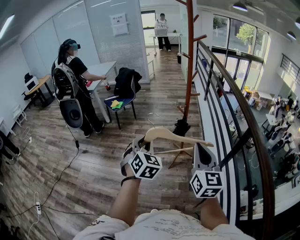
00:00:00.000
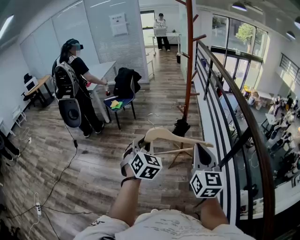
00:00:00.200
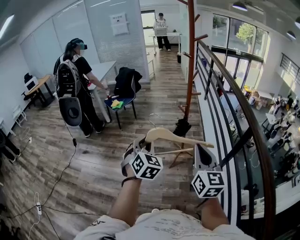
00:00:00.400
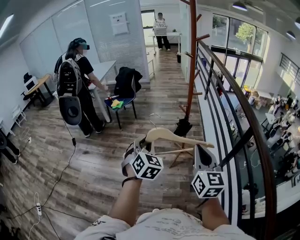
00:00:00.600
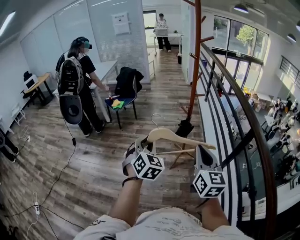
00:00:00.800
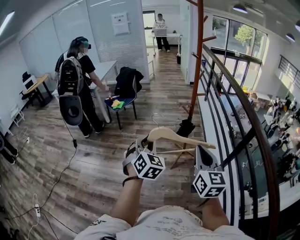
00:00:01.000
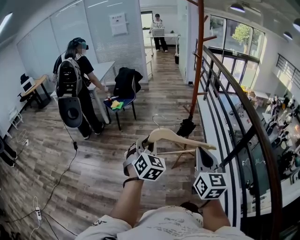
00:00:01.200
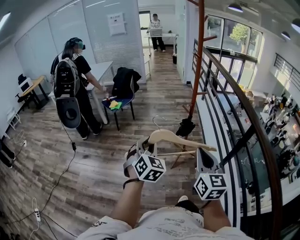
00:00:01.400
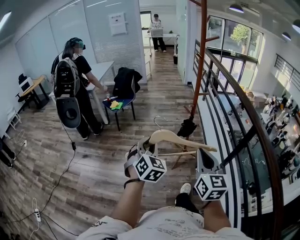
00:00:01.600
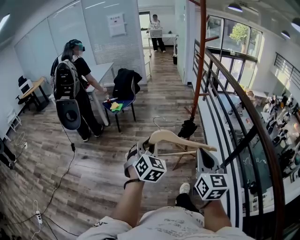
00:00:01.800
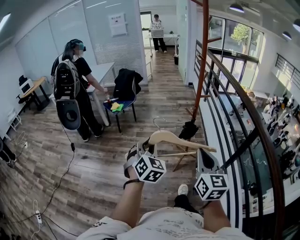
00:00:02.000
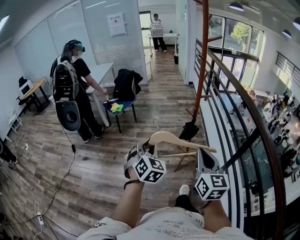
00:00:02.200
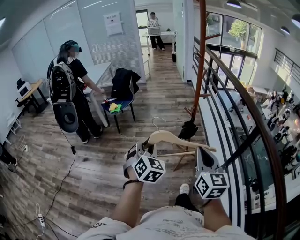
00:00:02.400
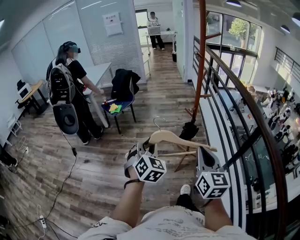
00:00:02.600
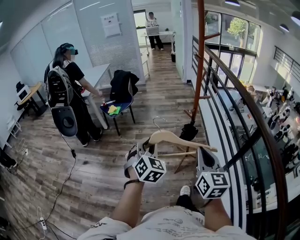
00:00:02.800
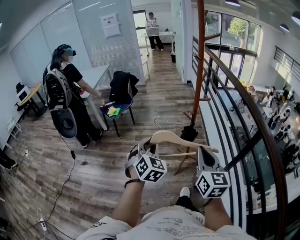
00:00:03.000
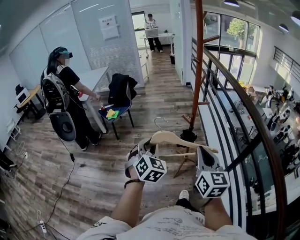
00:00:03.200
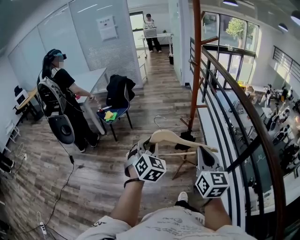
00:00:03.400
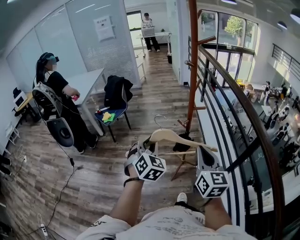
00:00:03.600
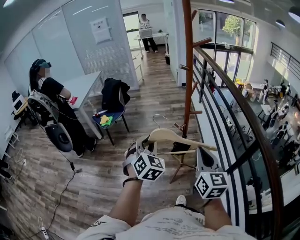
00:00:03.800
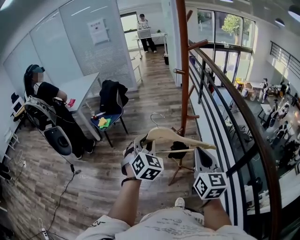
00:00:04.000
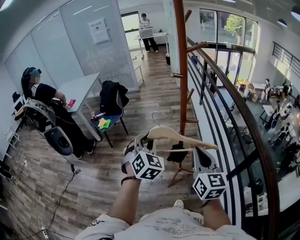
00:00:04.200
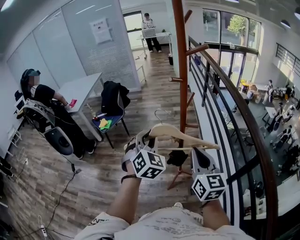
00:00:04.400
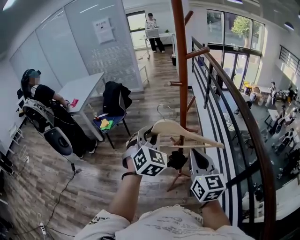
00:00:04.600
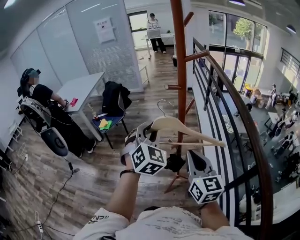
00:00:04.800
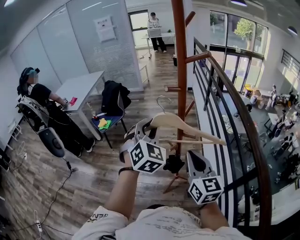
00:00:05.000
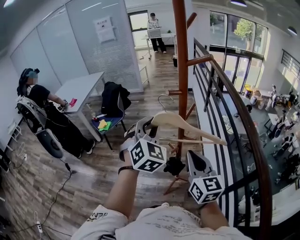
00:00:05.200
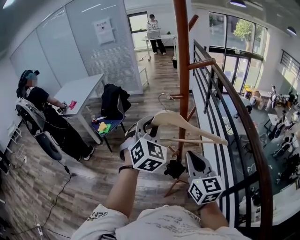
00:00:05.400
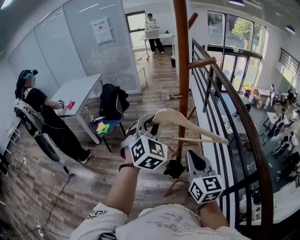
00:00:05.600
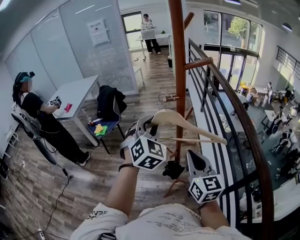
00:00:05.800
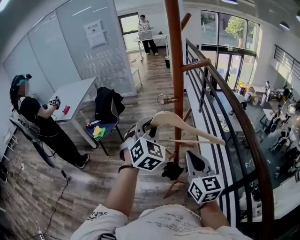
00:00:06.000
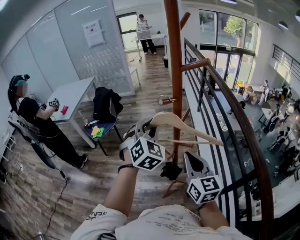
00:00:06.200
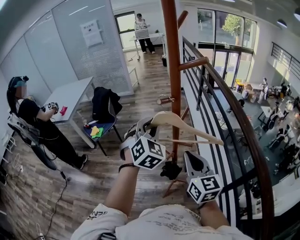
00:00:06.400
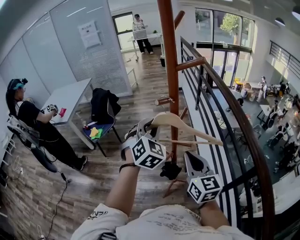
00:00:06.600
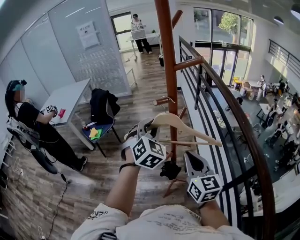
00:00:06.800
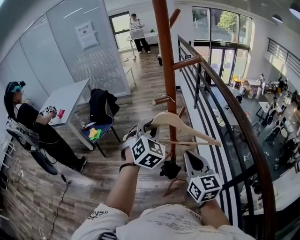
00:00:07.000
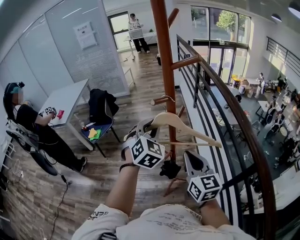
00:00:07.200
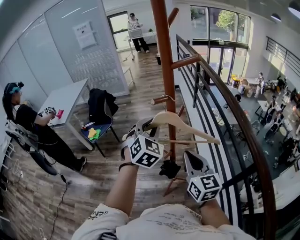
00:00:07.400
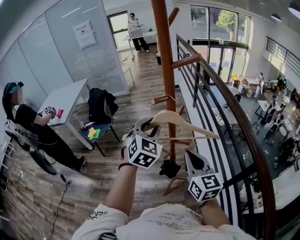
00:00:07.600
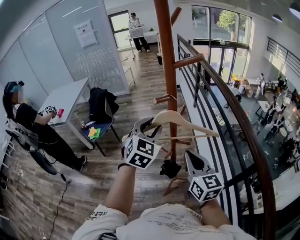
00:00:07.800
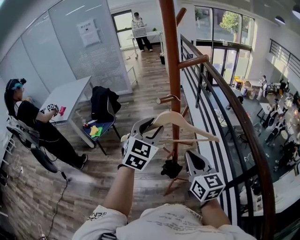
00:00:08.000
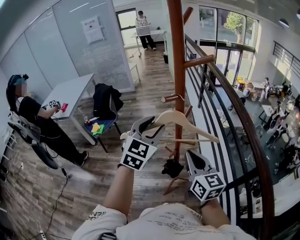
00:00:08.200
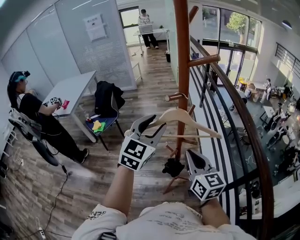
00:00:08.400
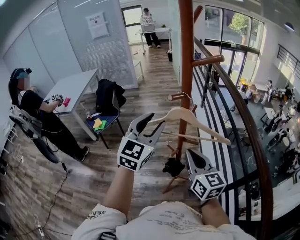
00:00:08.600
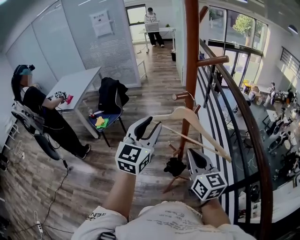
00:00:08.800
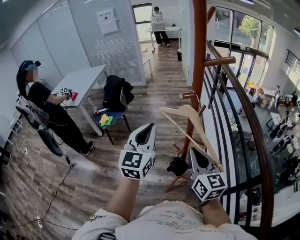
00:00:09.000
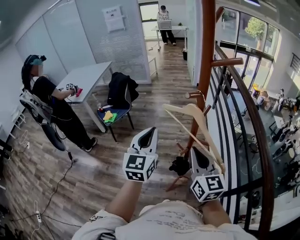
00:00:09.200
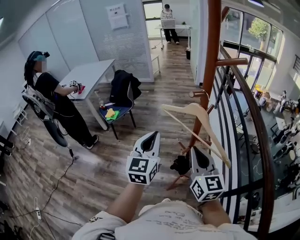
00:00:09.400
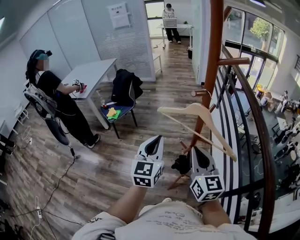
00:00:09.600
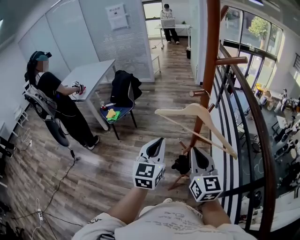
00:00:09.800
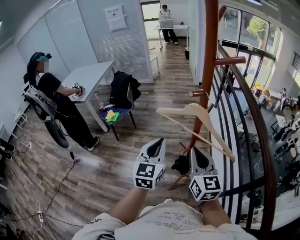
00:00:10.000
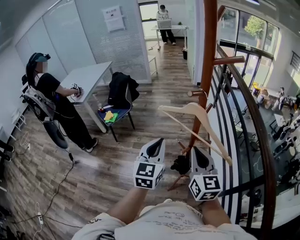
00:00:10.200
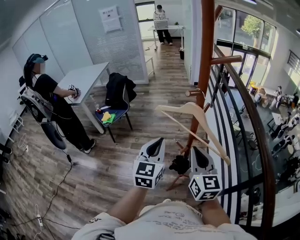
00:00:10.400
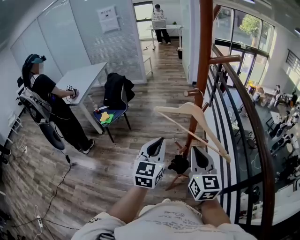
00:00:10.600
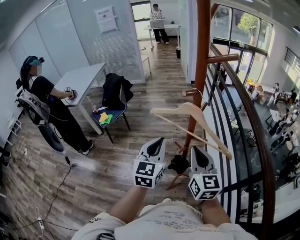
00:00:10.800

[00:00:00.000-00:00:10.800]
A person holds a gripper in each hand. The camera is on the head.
00:00:00.000 to 00:00:01.600: Both grippers move to the left, about 10 cm.
00:00:01.600 to 00:00:03.000: Both grippers travel together forward, about 10 cm.
00:00:03.000 to 00:00:04.600: The left gripper is displaced forward, to the right and upward by approximately 30 cm; the right gripper goes roughly 25 cm forward and to the right.
00:00:04.600 to 00:00:06.200: The grippers both shift forward by roughly 10 cm.
00:00:06.200 to 00:00:07.800: The grippers move only a little.
00:00:07.800 to 00:00:09.200: The left gripper goes approximately 10 cm to the left and backward, rotates approximately 40 degrees, and closes its fingers.
00:00:09.200 to 00:00:10.800: The left gripper moves downward, about 5 cm.

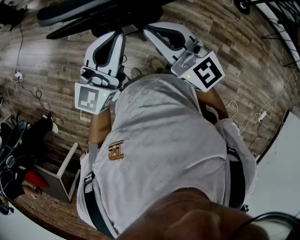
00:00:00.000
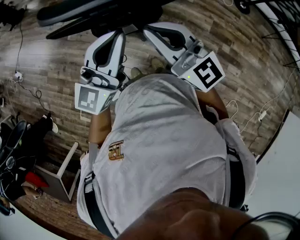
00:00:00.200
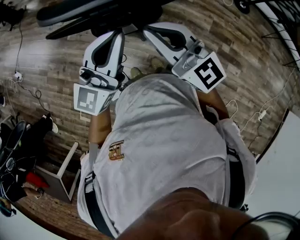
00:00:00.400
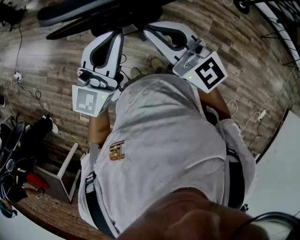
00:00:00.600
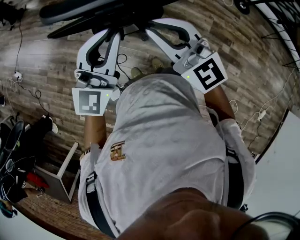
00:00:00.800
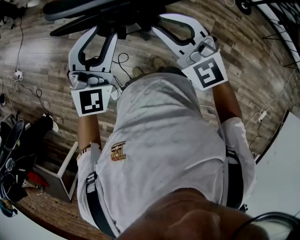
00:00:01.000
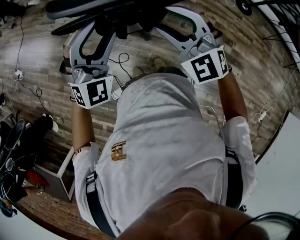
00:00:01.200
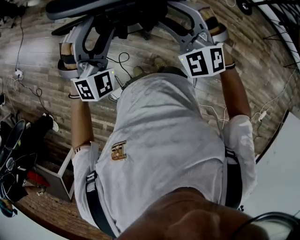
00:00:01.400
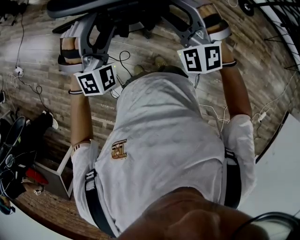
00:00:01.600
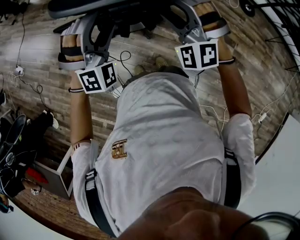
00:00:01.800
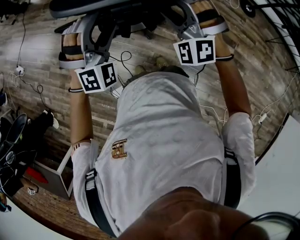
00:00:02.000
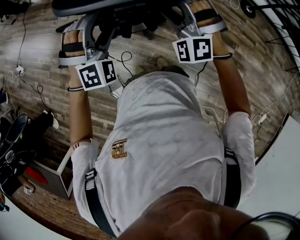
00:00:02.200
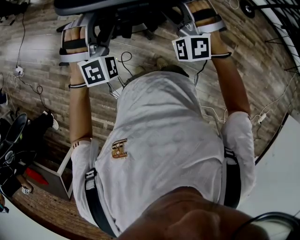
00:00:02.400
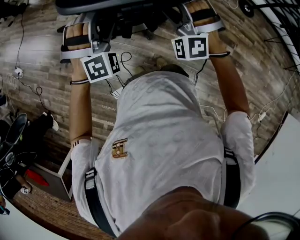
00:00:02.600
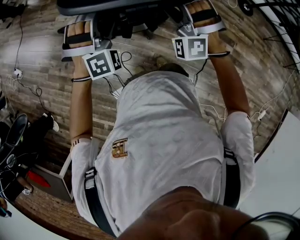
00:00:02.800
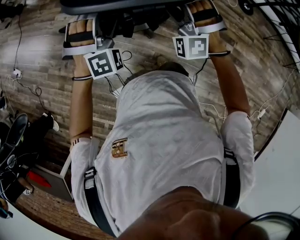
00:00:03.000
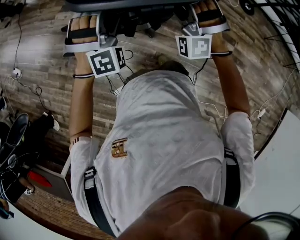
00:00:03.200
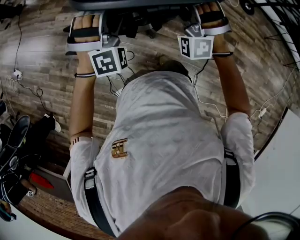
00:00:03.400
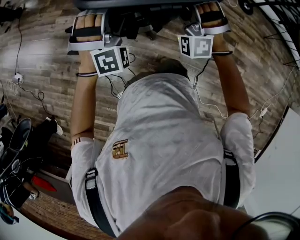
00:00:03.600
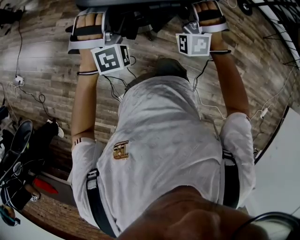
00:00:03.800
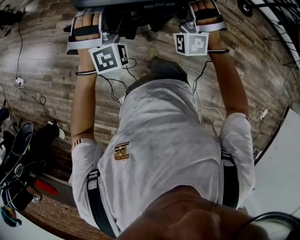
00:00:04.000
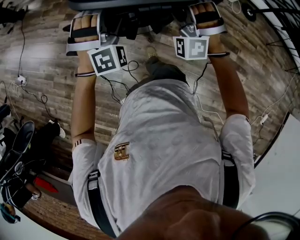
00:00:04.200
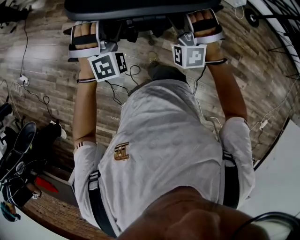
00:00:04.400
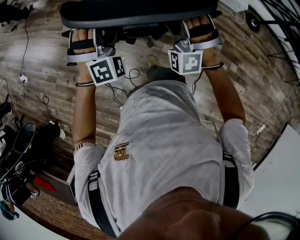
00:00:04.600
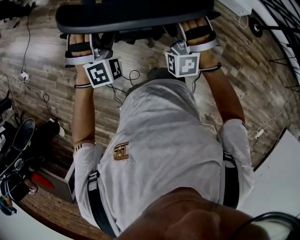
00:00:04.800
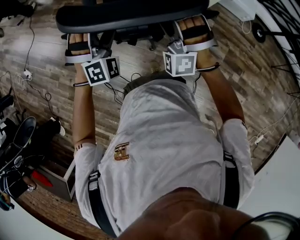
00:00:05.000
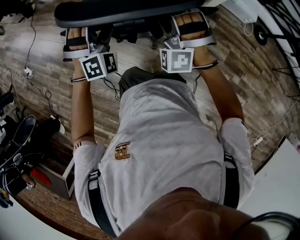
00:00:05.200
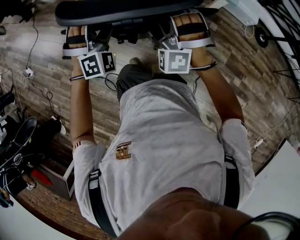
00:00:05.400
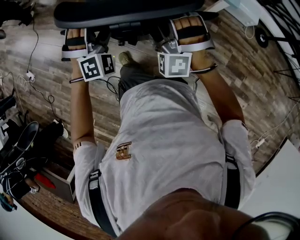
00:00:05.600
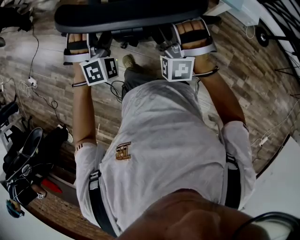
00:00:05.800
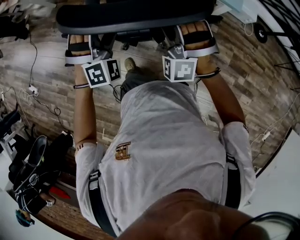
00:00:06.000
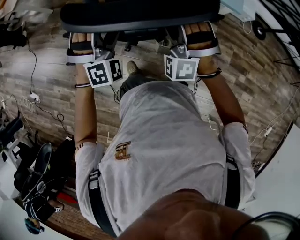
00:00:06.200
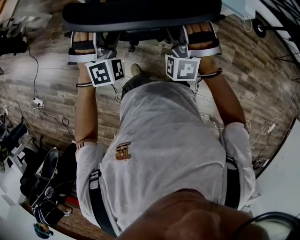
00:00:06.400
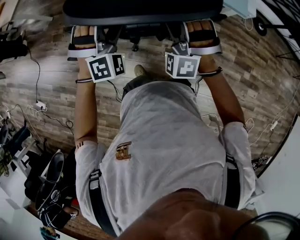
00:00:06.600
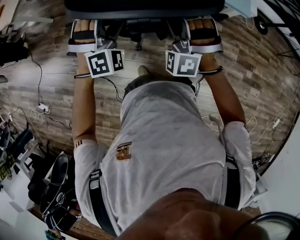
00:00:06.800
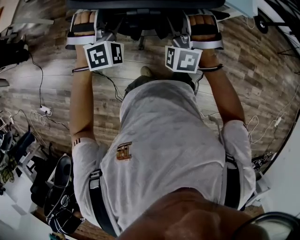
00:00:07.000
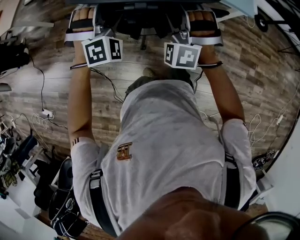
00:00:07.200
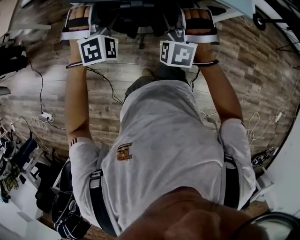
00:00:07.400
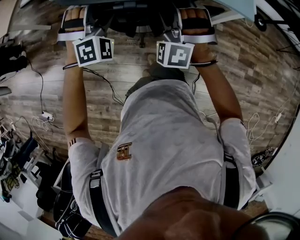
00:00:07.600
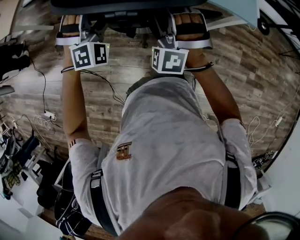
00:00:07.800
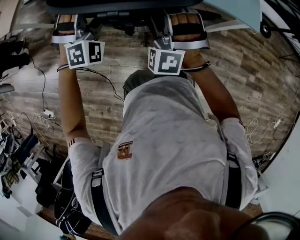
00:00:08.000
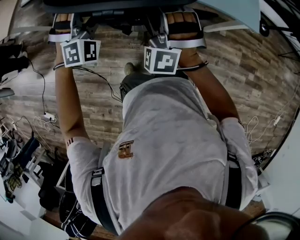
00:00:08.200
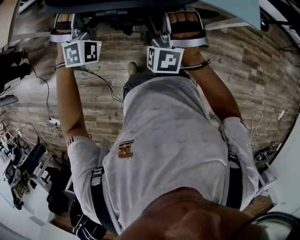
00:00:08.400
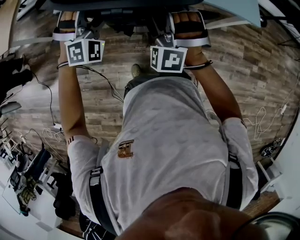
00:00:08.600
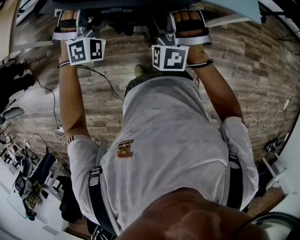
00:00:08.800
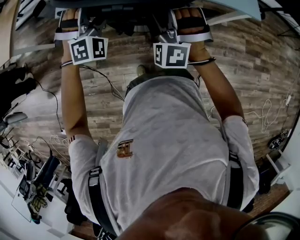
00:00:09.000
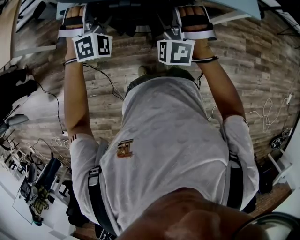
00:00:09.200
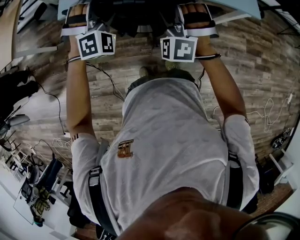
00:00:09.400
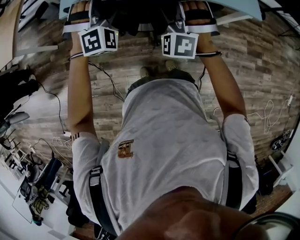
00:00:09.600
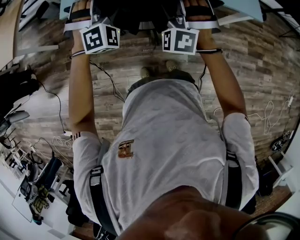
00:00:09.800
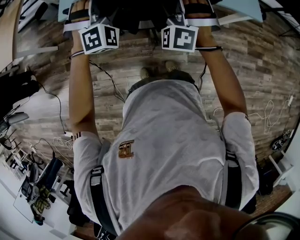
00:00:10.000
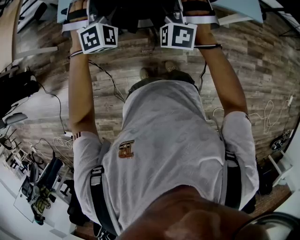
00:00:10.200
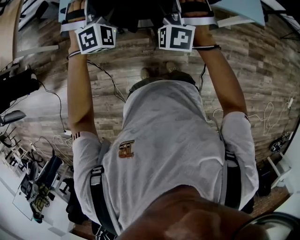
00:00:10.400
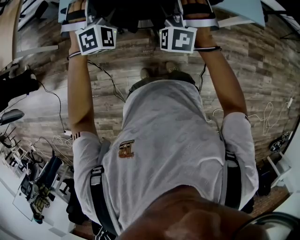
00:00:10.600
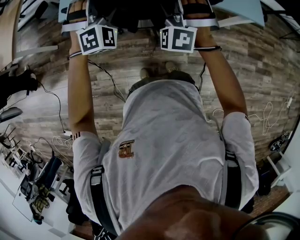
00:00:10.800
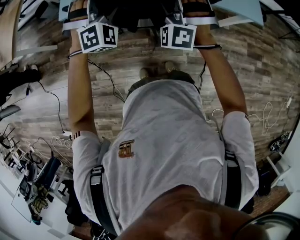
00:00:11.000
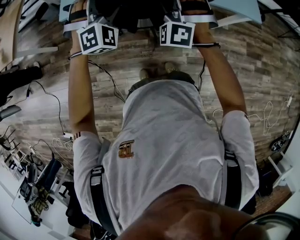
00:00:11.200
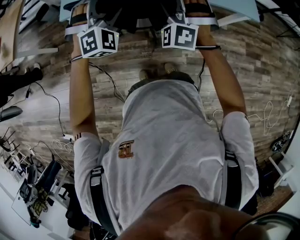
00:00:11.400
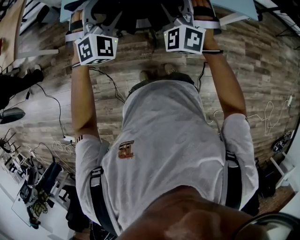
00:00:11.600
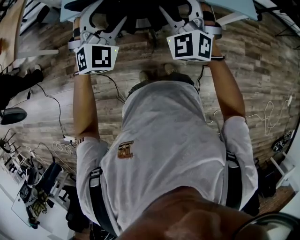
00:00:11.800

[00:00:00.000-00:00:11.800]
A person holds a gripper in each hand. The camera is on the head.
00:00:00.000 to 00:00:01.400: The left gripper is displaced to the left, downward and forward by about 10 cm, rotates around the line of its fingers by about 70 degrees, clockwise from behind, and opens. Meanwhile the right gripper travels downward and forward by approximately 10 cm, rotates around the line of its fingers by approximately 60 degrees, counterclockwise from behind, and opens up.
00:00:01.400 to 00:00:03.000: The left gripper goes some 10 cm forward and downward; the right gripper is displaced forward by roughly 10 cm, and swivels roughly 30 degrees.
00:00:03.000 to 00:00:04.400: The grippers both shift forward by approximately 15 cm.
00:00:04.400 to 00:00:06.000: The two grippers go about 25 cm forward.
00:00:06.000 to 00:00:07.400: The left gripper goes approximately 30 cm forward and to the left. The right gripper moves to the left and forward, some 25 cm.
00:00:07.400 to 00:00:08.800: Both grippers move to the left and forward, some 20 cm.
00:00:08.800 to 00:00:10.400: The grippers both shift forward by about 5 cm.
00:00:10.400 to 00:00:11.800: Both grippers travel together backward and upward, about 10 cm. The right gripper rotates about 30 degrees; the left gripper swivels some 30 degrees.

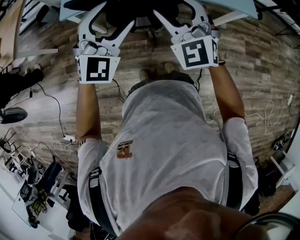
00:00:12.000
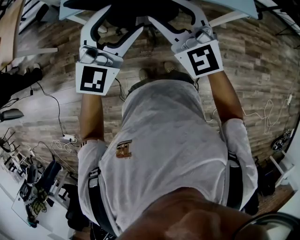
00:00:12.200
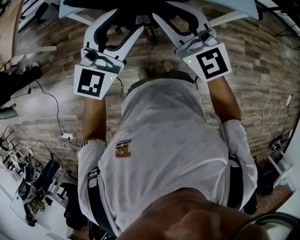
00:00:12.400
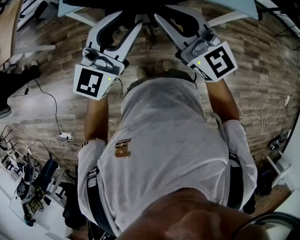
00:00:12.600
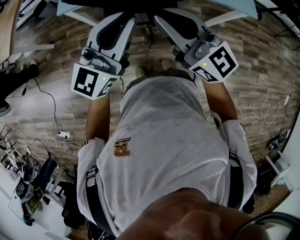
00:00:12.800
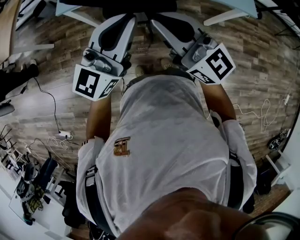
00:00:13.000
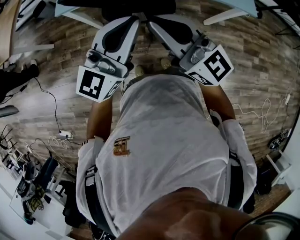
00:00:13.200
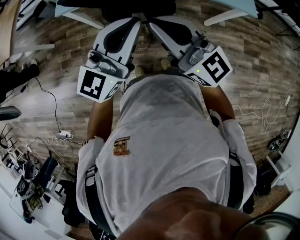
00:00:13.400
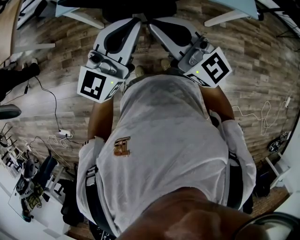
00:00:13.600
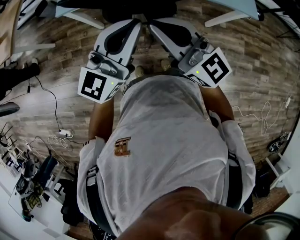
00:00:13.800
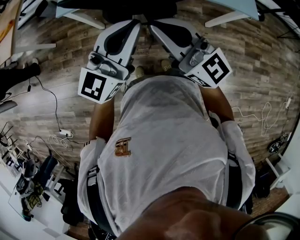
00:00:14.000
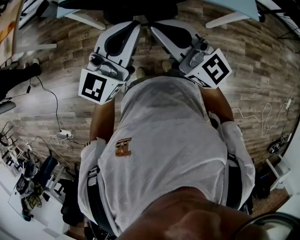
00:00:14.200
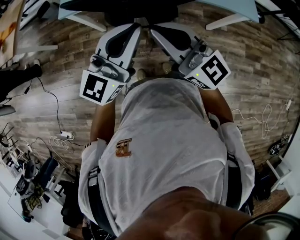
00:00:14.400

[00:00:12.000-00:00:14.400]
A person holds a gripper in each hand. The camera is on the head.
00:00:12.000 to 00:00:13.200: Both grippers travel together backward, some 5 cm. The left gripper rotates around the line of its fingers by approximately 40 degrees, counterclockwise from behind, and closes. The right gripper changes its angle by about 50 degrees, and closes.
00:00:13.200 to 00:00:14.400: The grippers stay close to where they were, moving slightly.
